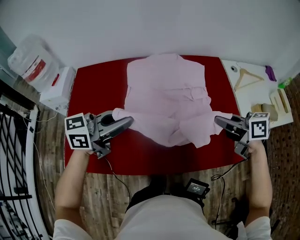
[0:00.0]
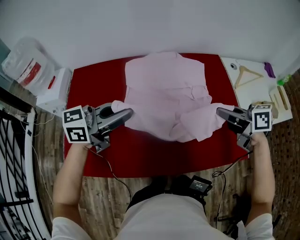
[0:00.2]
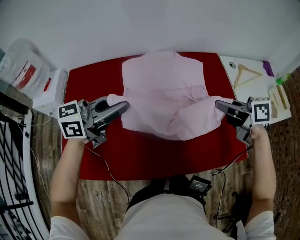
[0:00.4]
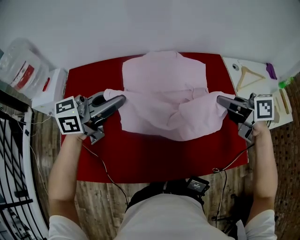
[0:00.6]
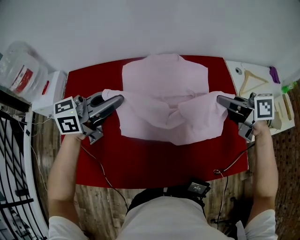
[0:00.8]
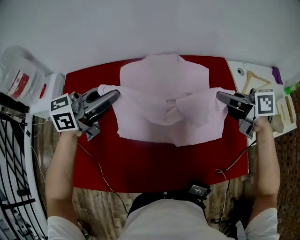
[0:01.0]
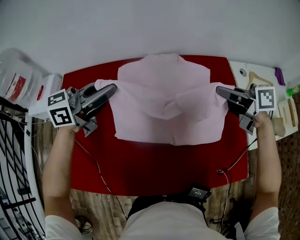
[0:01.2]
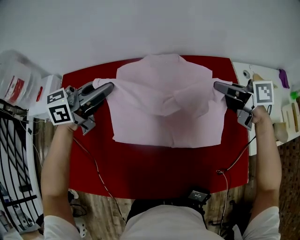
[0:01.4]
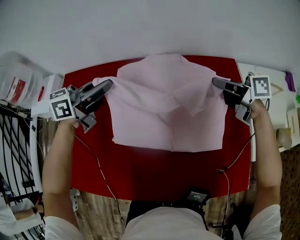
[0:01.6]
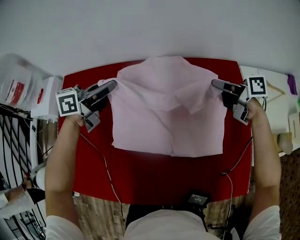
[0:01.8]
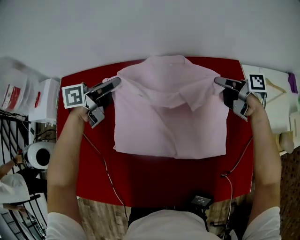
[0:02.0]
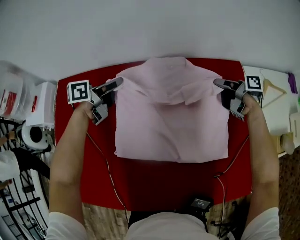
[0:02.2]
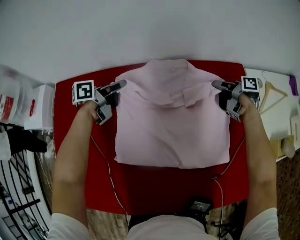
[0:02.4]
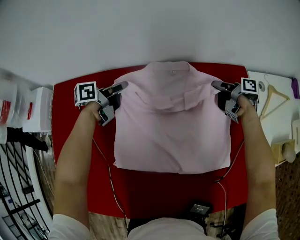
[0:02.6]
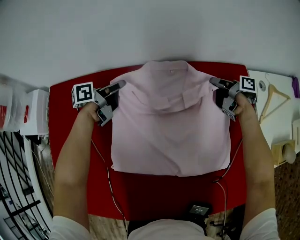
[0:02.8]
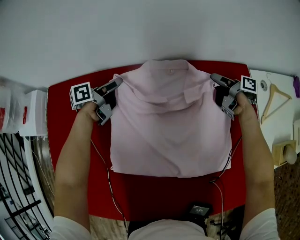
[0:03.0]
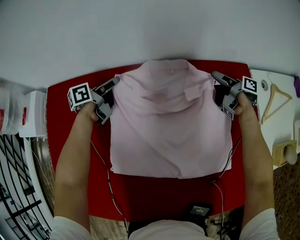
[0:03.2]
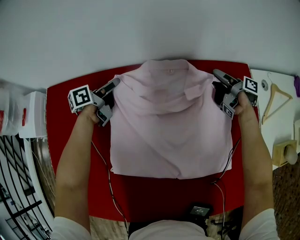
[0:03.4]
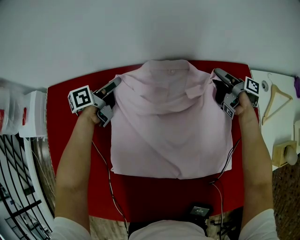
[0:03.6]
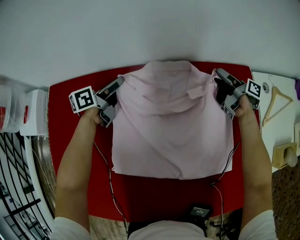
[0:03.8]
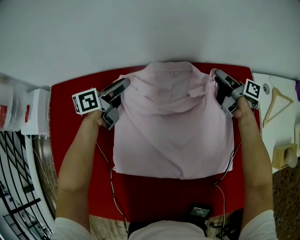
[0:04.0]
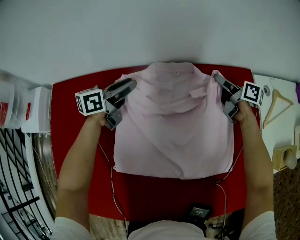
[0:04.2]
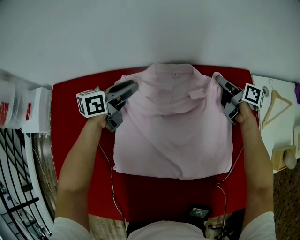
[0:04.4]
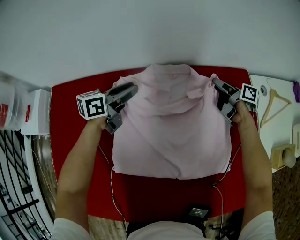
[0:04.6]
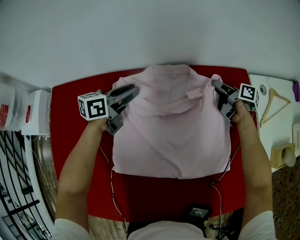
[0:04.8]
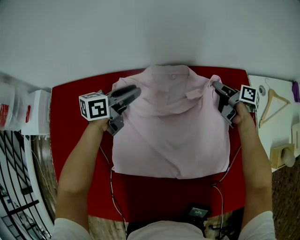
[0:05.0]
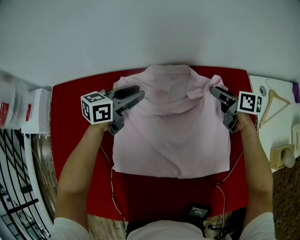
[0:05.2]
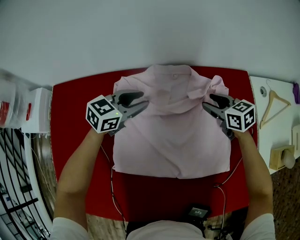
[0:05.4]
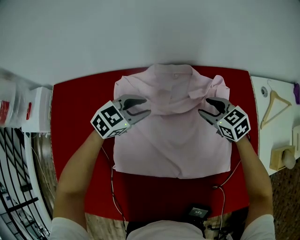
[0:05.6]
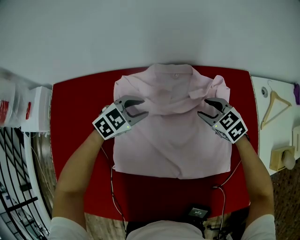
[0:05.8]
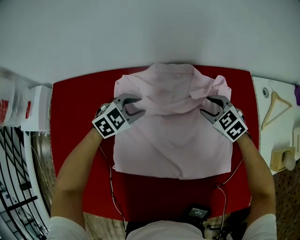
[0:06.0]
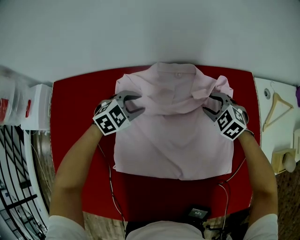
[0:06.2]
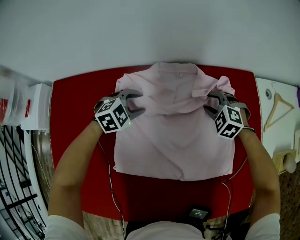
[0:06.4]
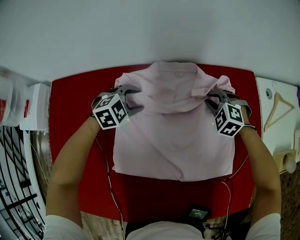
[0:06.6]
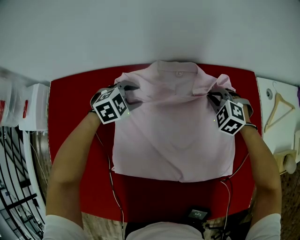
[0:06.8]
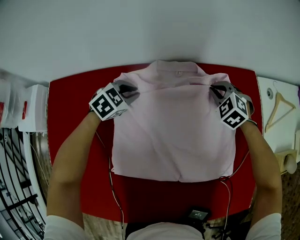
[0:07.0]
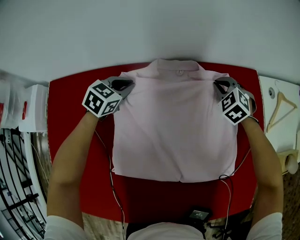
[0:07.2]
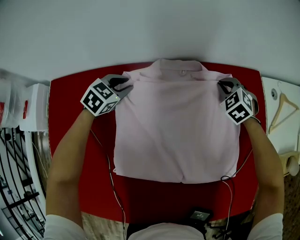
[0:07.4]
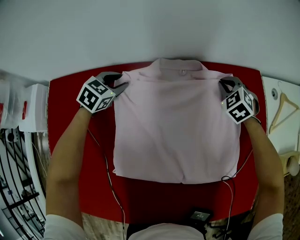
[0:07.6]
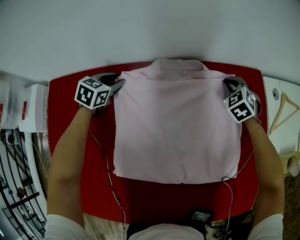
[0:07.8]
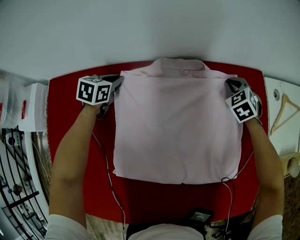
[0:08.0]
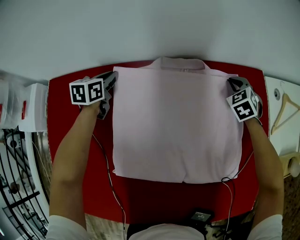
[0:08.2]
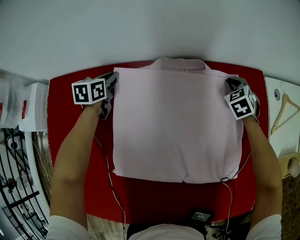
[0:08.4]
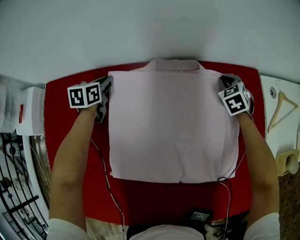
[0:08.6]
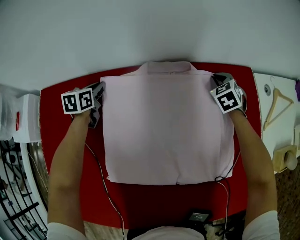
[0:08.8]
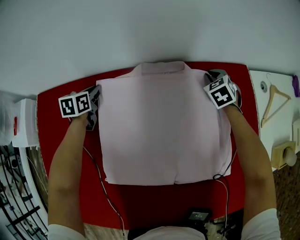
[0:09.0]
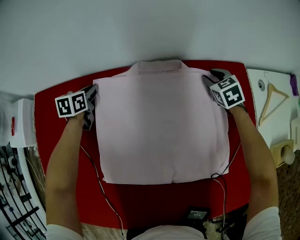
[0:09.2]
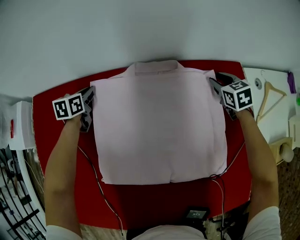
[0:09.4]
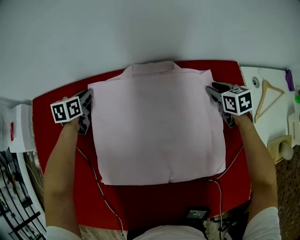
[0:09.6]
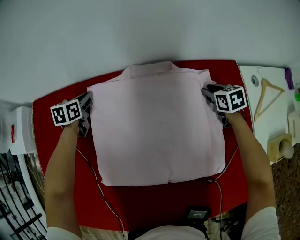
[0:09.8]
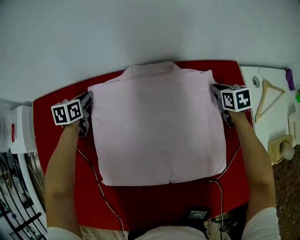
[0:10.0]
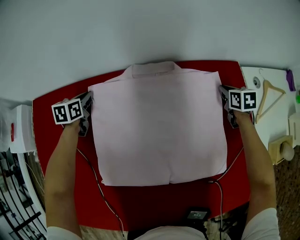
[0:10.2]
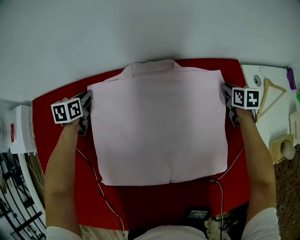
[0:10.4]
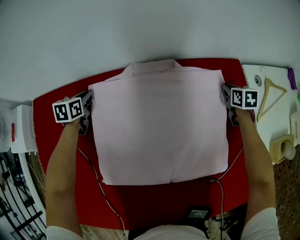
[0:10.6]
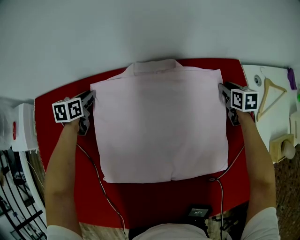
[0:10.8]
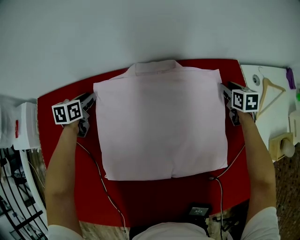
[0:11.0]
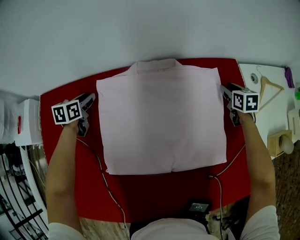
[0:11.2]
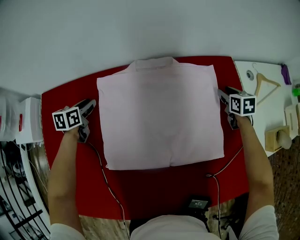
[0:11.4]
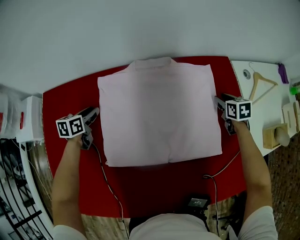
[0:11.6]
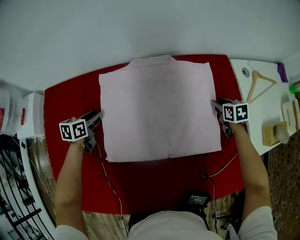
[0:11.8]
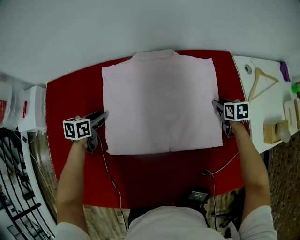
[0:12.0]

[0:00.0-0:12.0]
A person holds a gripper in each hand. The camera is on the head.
0:00.0 to 0:01.6: The grippers both shift forward by roughly 10 cm.
0:01.6 to 0:03.0: Both grippers move downward and forward, some 15 cm. The right gripper changes its angle by about 40 degrees, and opens its fingers. Meanwhile the left gripper changes its angle by about 40 degrees, and opens its fingers.
0:03.0 to 0:04.4: The right gripper turns by roughly 20 degrees; the left gripper goes about 10 cm upward and to the right, and rotates approximately 30 degrees.
0:04.4 to 0:06.0: The left gripper moves downward and backward, roughly 10 cm, and rolls clockwise, seen from behind, by approximately 60 degrees, while the right gripper goes approximately 15 cm backward and to the left, and rotates around the line of its fingers by some 80 degrees, counterclockwise from behind.
0:06.0 to 0:07.6: The left gripper goes some 15 cm to the left and forward, rotates some 20 degrees, and closes and opens again; the right gripper is displaced forward by about 10 cm, swivels some 20 degrees, and closes up.
0:07.6 to 0:09.0: The left gripper shifts about 5 cm to the left, twists approximately 40 degrees counterclockwise, seen from behind, and closes up.
0:09.0 to 0:10.4: The right gripper shifts approximately 15 cm to the right, rotates around the line of its fingers by about 40 degrees, clockwise from behind, and opens, then closes again.
0:10.4 to 0:12.0: Both grippers move backward, approximately 15 cm. The right gripper opens; the left gripper opens.

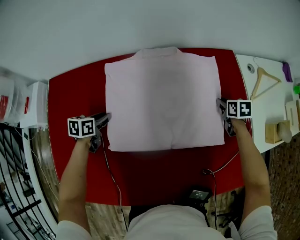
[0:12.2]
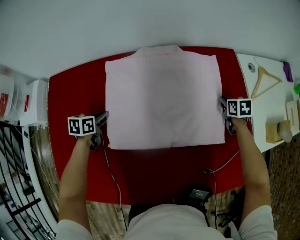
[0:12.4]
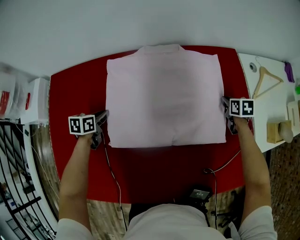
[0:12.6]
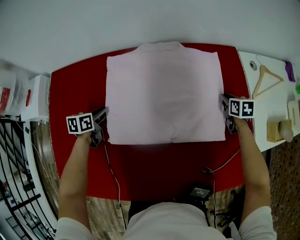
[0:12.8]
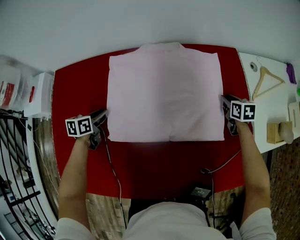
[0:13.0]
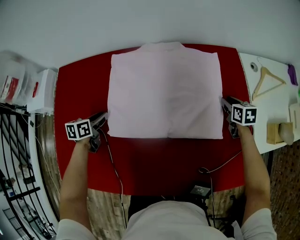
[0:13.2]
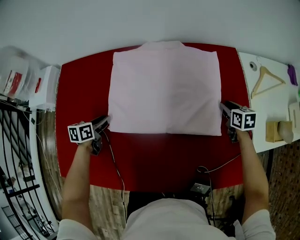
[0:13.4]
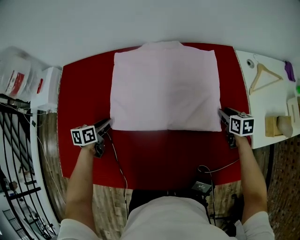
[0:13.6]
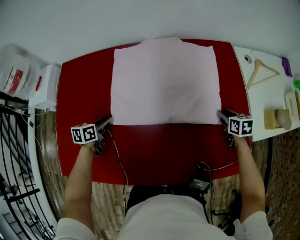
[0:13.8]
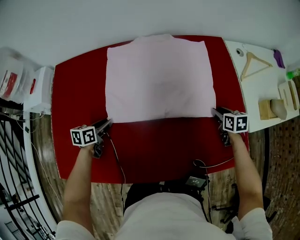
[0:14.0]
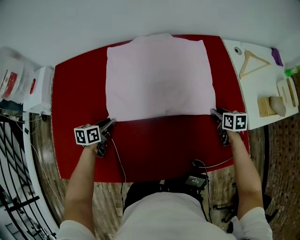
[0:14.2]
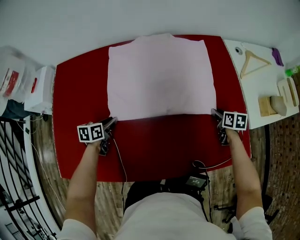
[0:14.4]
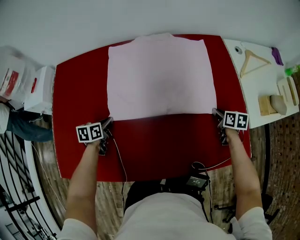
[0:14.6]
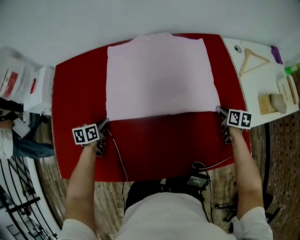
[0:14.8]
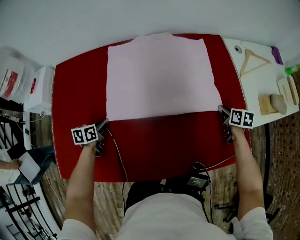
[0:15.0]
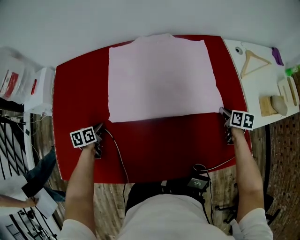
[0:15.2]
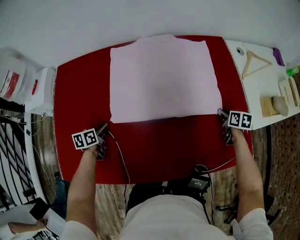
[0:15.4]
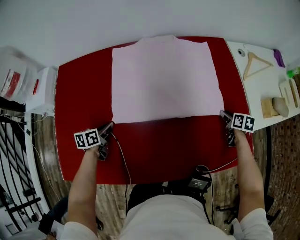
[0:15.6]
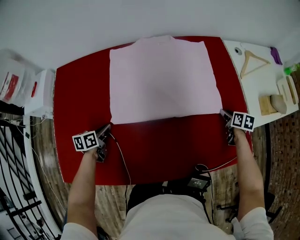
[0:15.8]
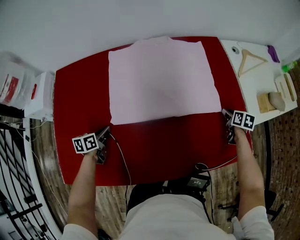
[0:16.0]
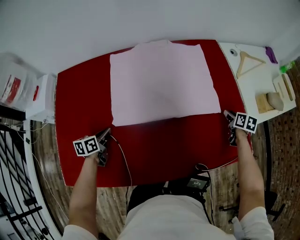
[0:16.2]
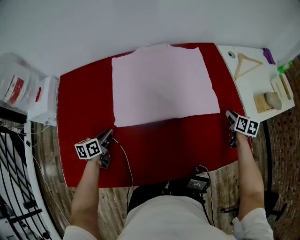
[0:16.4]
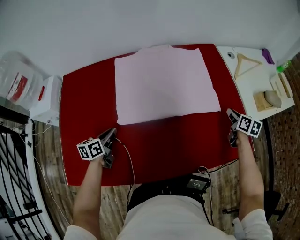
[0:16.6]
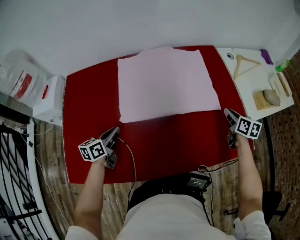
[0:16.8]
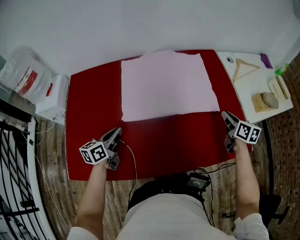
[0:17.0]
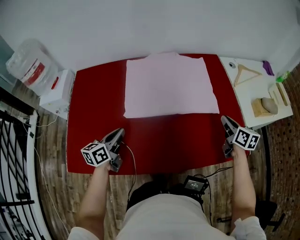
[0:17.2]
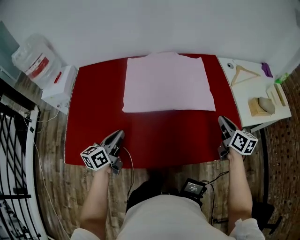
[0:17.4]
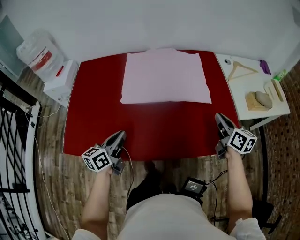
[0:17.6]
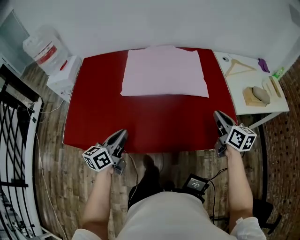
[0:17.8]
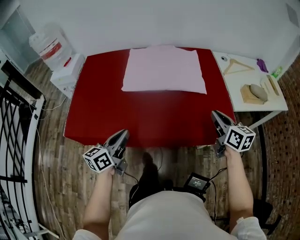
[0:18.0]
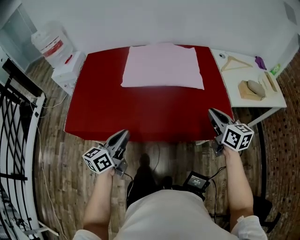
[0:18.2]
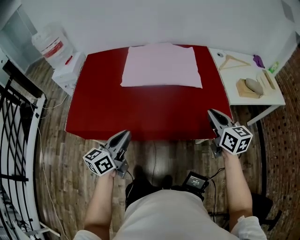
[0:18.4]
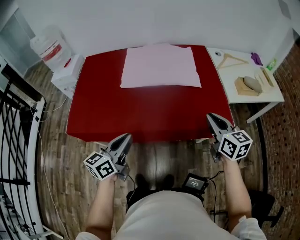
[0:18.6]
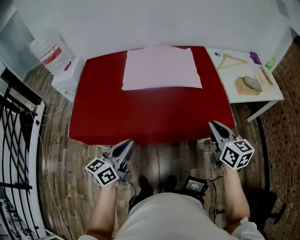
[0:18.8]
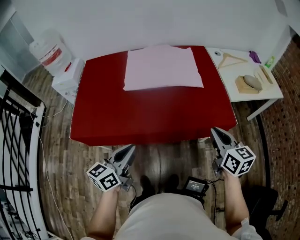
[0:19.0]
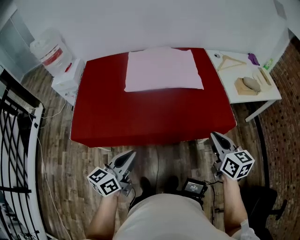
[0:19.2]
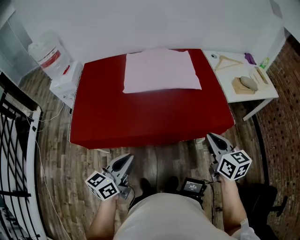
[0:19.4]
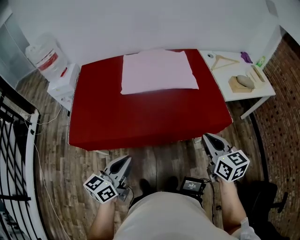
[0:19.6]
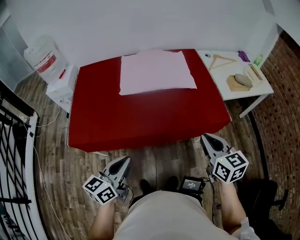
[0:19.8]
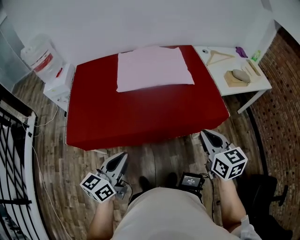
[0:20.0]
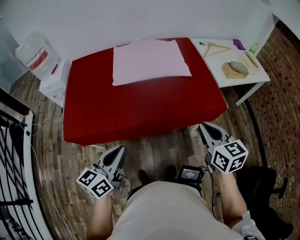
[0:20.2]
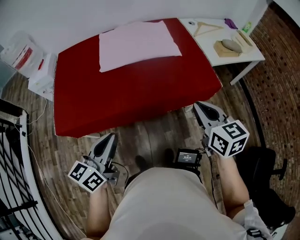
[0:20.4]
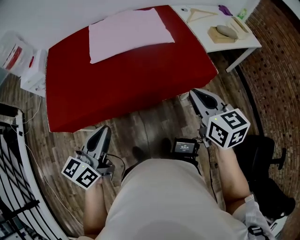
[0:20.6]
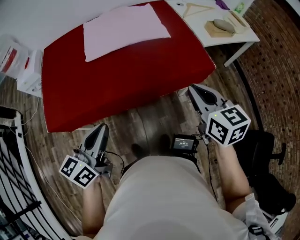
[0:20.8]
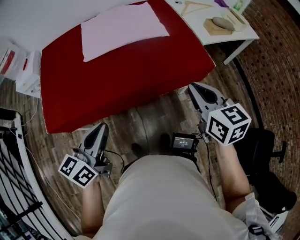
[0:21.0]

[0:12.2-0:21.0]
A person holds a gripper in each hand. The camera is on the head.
0:12.2 to 0:13.6: Both grippers move backward, some 10 cm.
0:13.6 to 0:15.2: The left gripper shifts roughly 5 cm downward, and closes up; the right gripper heads backward, covering approximately 5 cm.
0:15.2 to 0:16.6: The grippers both shift upward by roughly 10 cm. The left gripper rotates approximately 20 degrees; the right gripper opens, then closes again.
0:16.6 to 0:18.0: The right gripper shifts approximately 25 cm backward and upward, and swivels about 30 degrees, while the left gripper travels backward, to the right and upward by approximately 35 cm, and rotates roughly 20 degrees.
0:18.0 to 0:19.6: The right gripper travels backward and to the left by some 20 cm; the left gripper moves backward and upward, about 15 cm.
0:19.6 to 0:21.0: There are only small adjustments of the grippers.

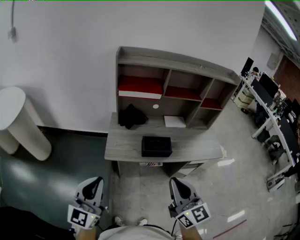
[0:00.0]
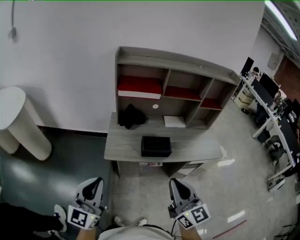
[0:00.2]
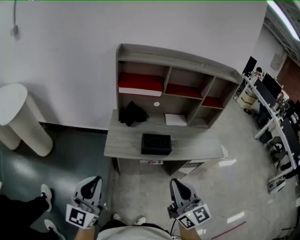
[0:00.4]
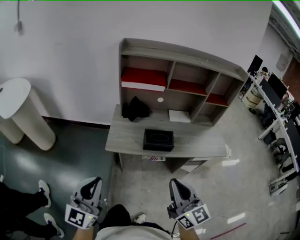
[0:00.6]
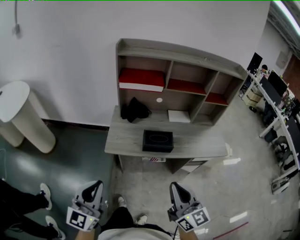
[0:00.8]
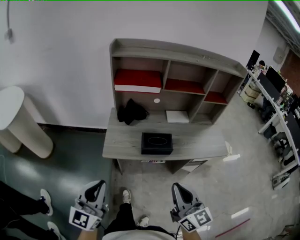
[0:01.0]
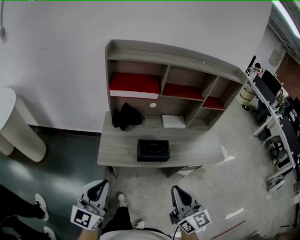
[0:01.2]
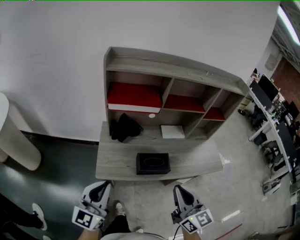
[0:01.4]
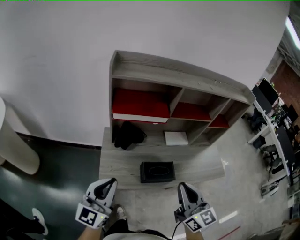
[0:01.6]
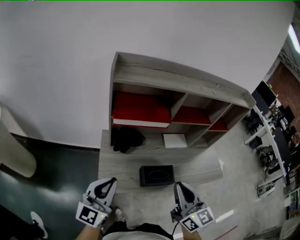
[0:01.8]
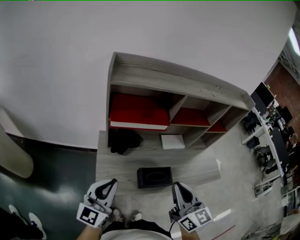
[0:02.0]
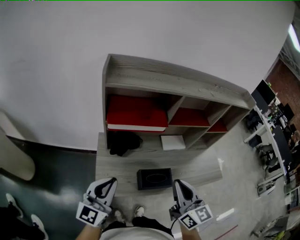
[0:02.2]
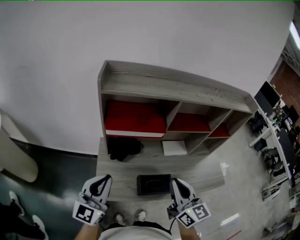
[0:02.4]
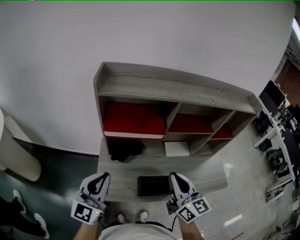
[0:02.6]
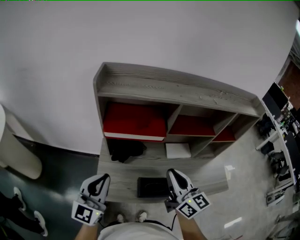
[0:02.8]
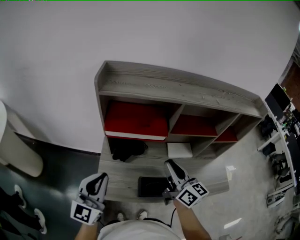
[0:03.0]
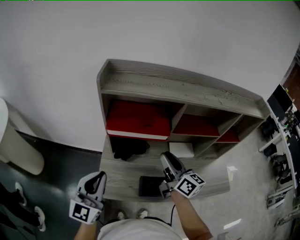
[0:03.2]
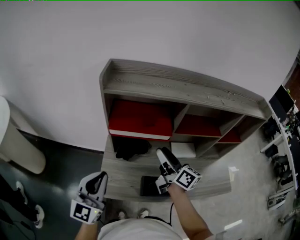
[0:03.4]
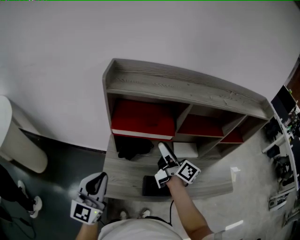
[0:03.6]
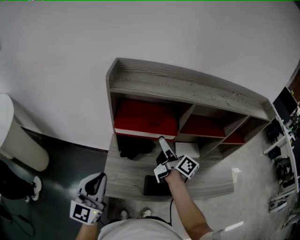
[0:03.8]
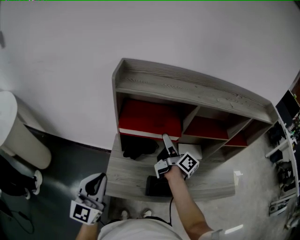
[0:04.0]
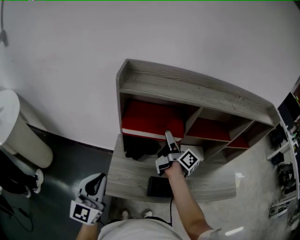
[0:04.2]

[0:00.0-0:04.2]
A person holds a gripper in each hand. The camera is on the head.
0:00.0 to 0:01.4: Both grippers travel together forward, some 15 cm.
0:01.4 to 0:02.8: Both grippers travel together forward, roughly 20 cm.
0:02.8 to 0:04.2: The left gripper heads to the left, covering some 5 cm. The right gripper shifts some 20 cm forward, rolls clockwise, seen from behind, by about 50 degrees, and opens.
